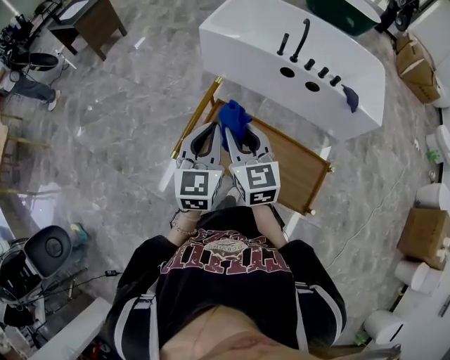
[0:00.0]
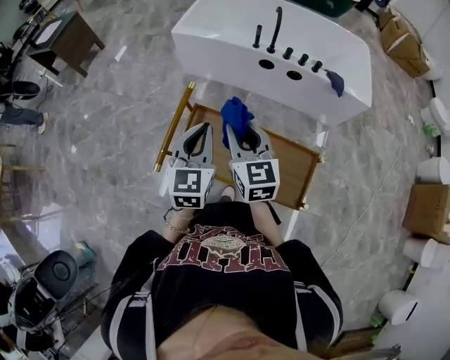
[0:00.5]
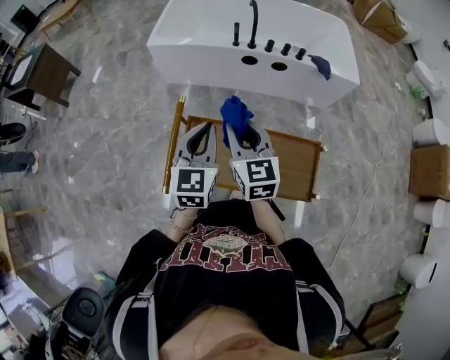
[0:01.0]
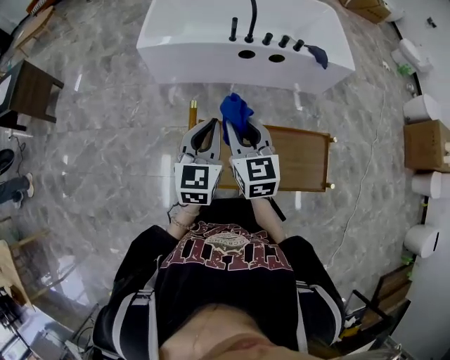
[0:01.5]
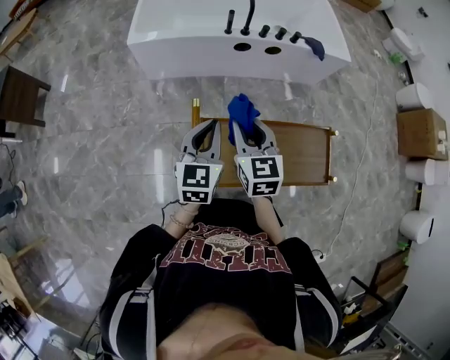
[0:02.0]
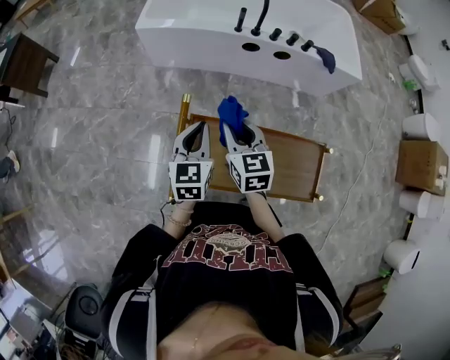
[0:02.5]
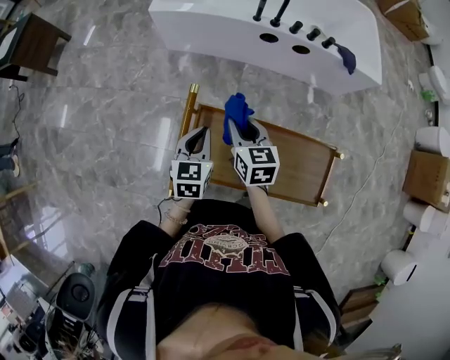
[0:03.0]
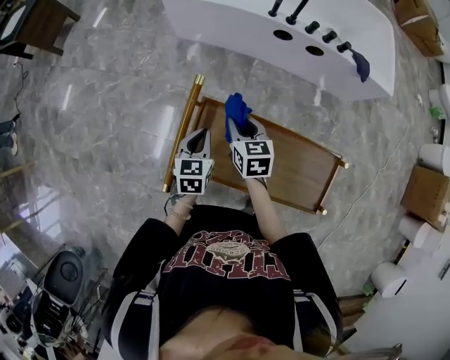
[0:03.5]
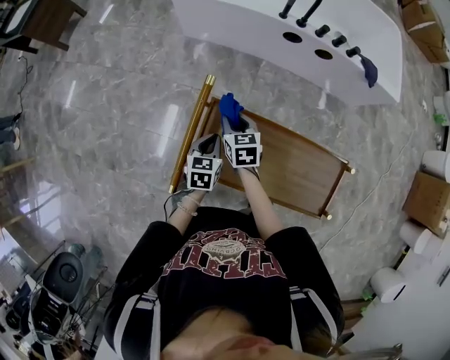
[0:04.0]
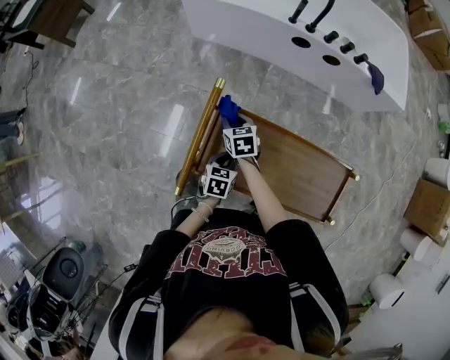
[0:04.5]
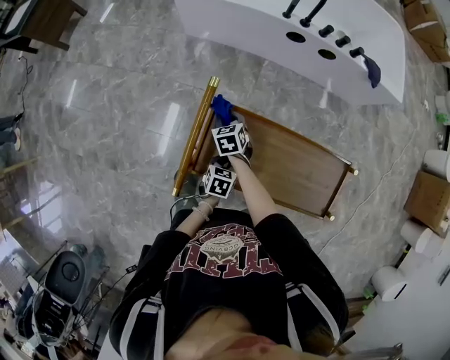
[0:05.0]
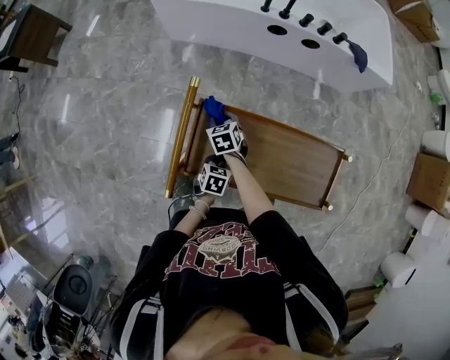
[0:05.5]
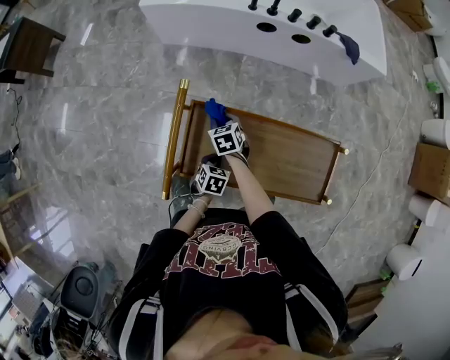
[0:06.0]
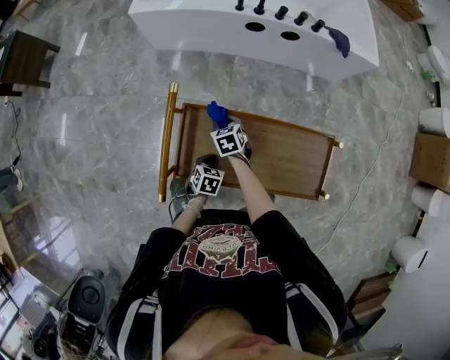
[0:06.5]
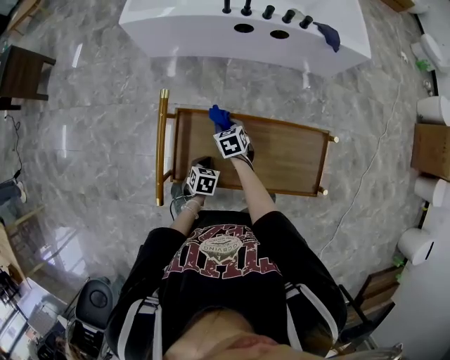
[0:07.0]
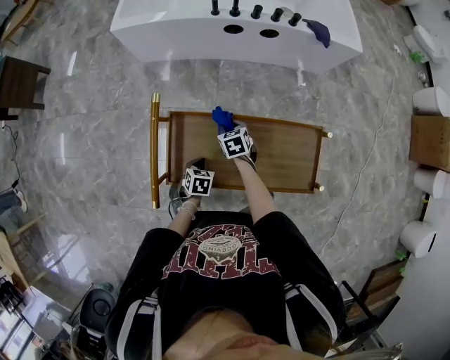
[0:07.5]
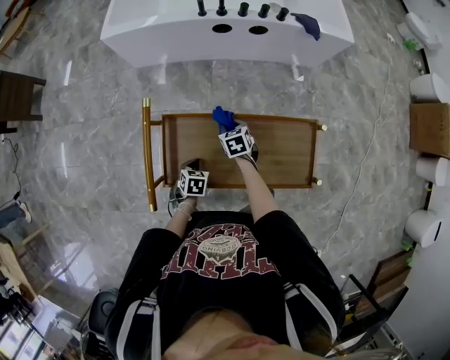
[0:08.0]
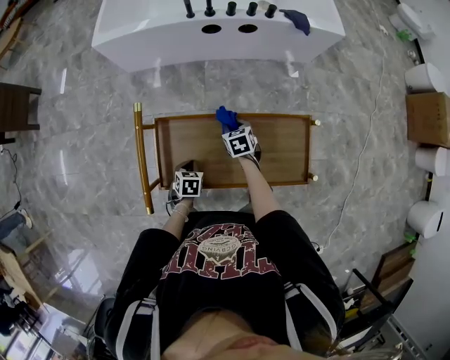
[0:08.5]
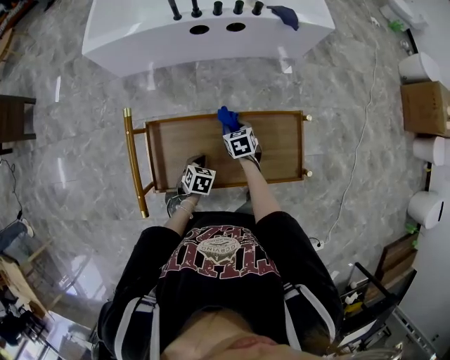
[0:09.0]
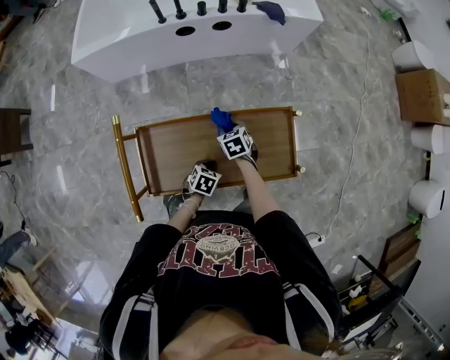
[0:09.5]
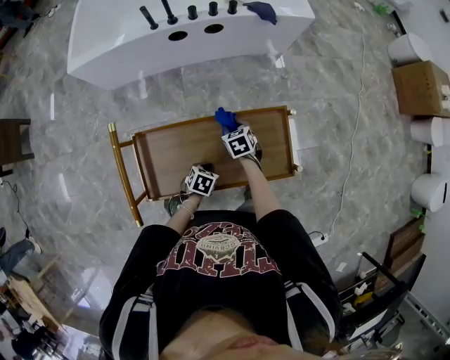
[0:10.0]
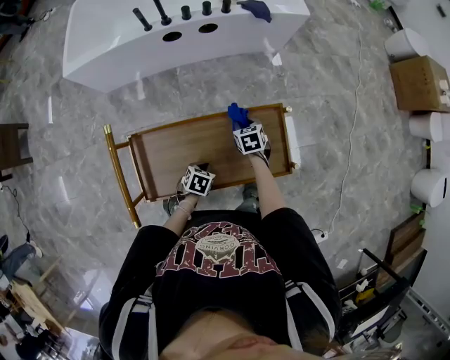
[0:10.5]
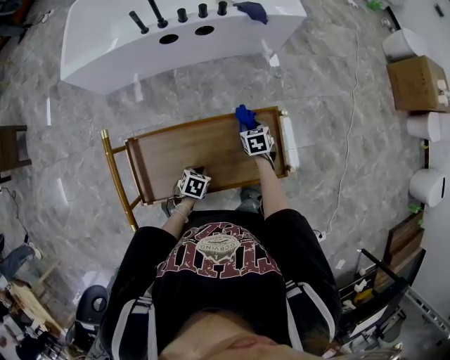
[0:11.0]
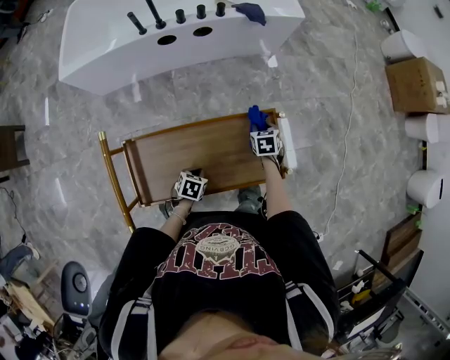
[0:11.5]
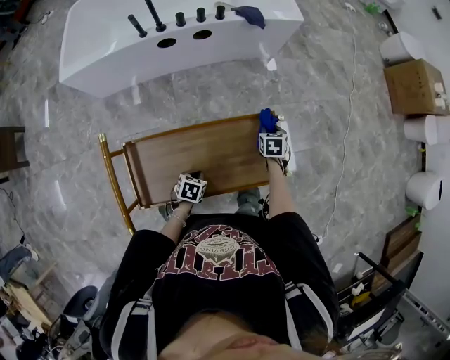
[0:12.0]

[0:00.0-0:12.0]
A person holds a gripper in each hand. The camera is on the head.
0:00.0 to 0:02.0: The right gripper changes place by about 20 cm, and swivels about 30 degrees; the left gripper shifts by roughly 20 cm, and changes its angle by approximately 30 degrees.
0:02.0 to 0:04.0: The two grippers go approximately 25 cm downward. The right gripper changes its angle by about 30 degrees; the left gripper swivels some 30 degrees.
0:04.0 to 0:06.0: The right gripper moves downward, approximately 10 cm. Meanwhile the left gripper heads downward, to the right and backward, covering roughly 15 cm, and rotates approximately 30 degrees.
0:06.0 to 0:08.0: The right gripper moves to the right, some 15 cm.
0:08.0 to 0:10.0: The right gripper changes place by approximately 15 cm; the left gripper changes place by about 15 cm, and changes its angle by some 30 degrees.
0:10.0 to 0:12.0: The right gripper is displaced to the right and forward by roughly 20 cm, and changes its angle by approximately 20 degrees.

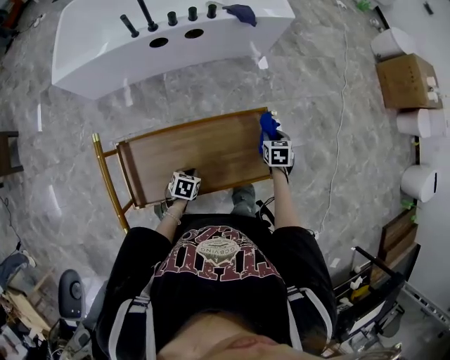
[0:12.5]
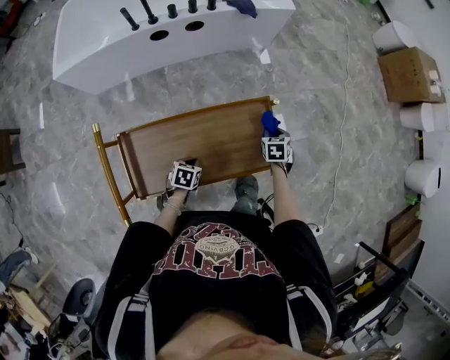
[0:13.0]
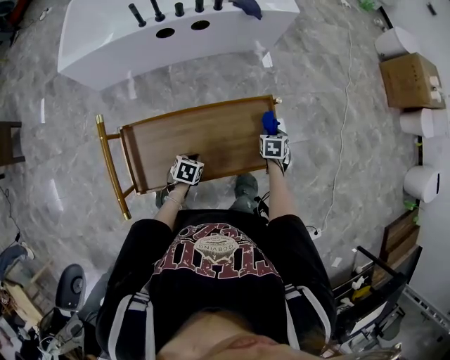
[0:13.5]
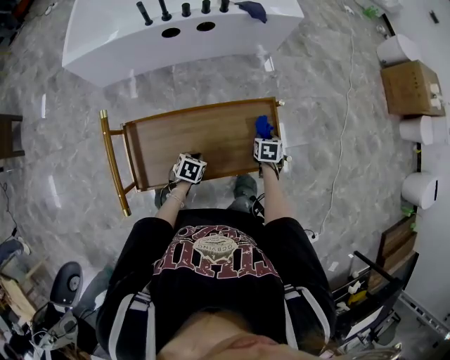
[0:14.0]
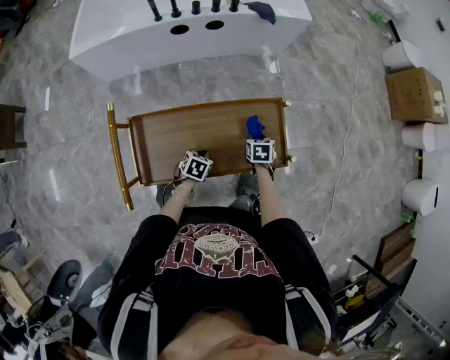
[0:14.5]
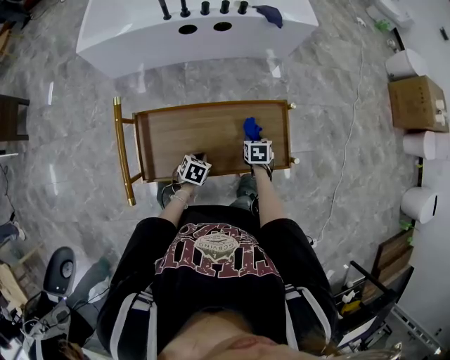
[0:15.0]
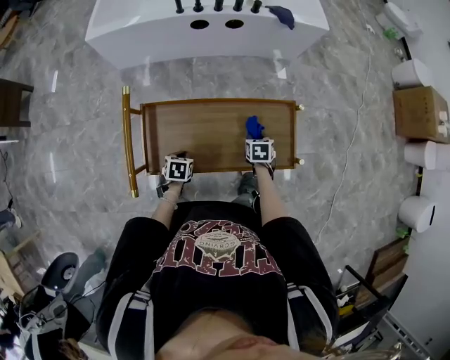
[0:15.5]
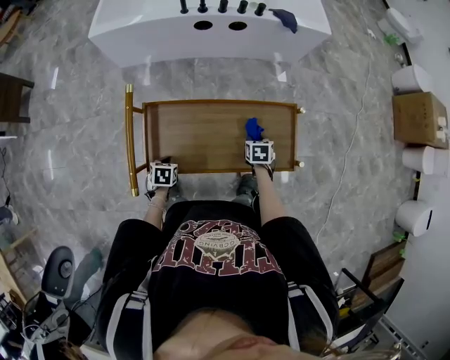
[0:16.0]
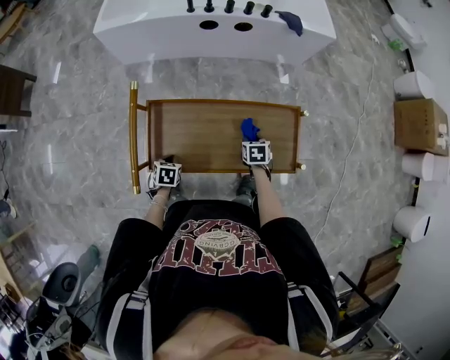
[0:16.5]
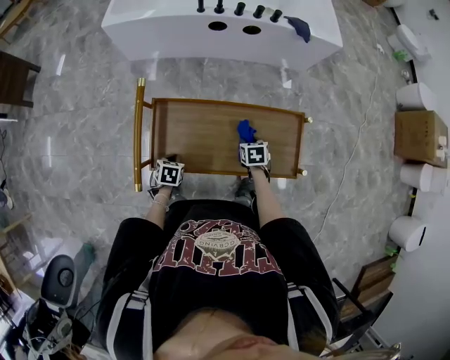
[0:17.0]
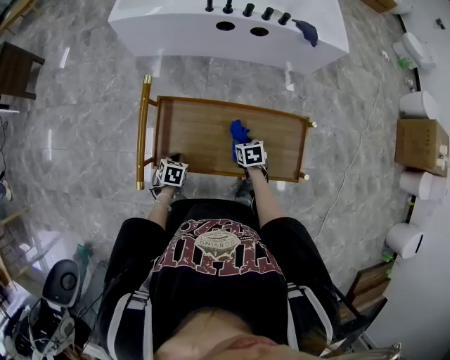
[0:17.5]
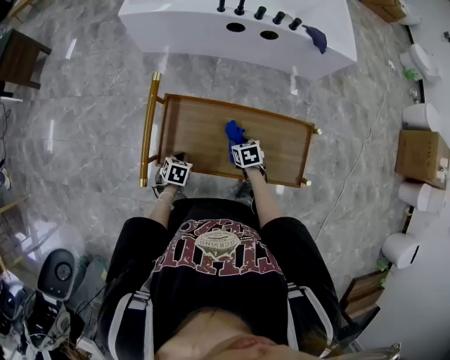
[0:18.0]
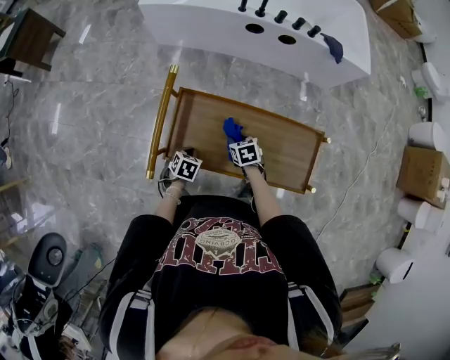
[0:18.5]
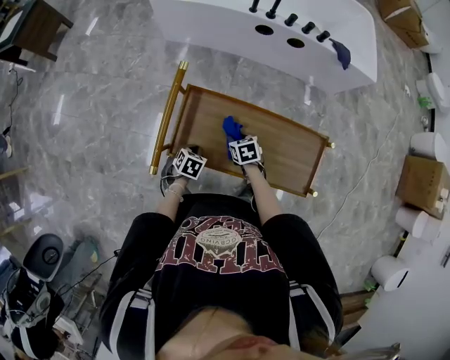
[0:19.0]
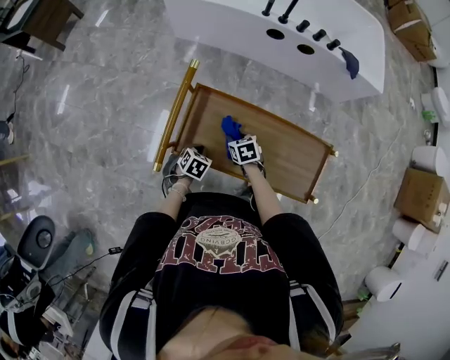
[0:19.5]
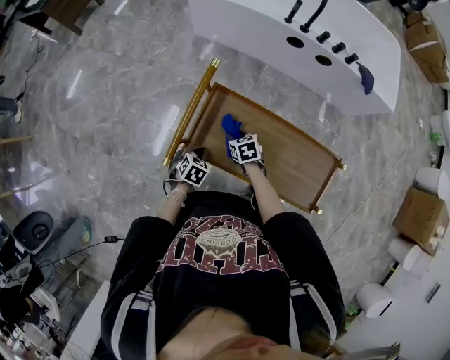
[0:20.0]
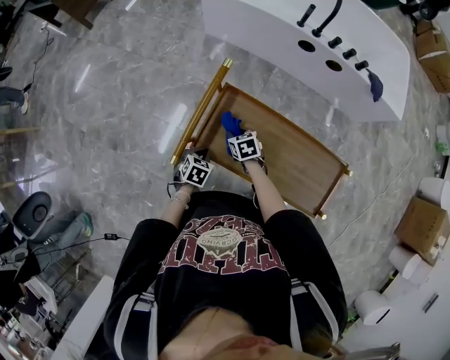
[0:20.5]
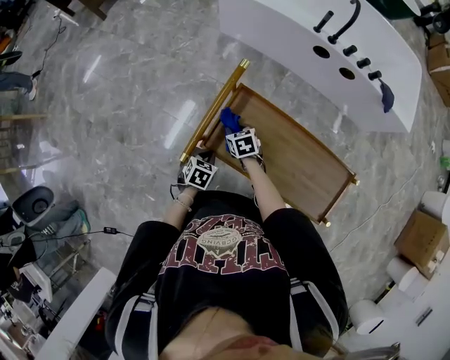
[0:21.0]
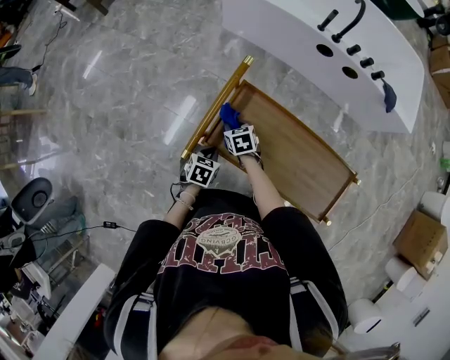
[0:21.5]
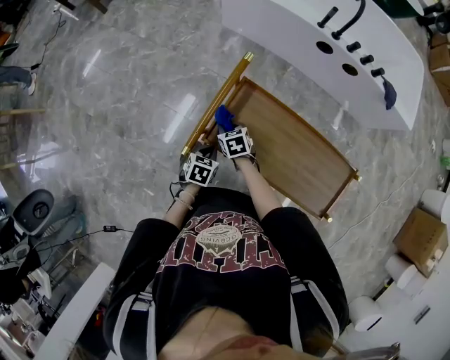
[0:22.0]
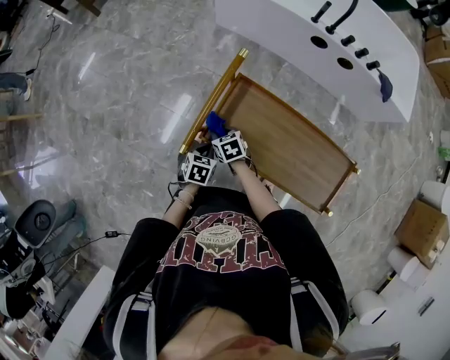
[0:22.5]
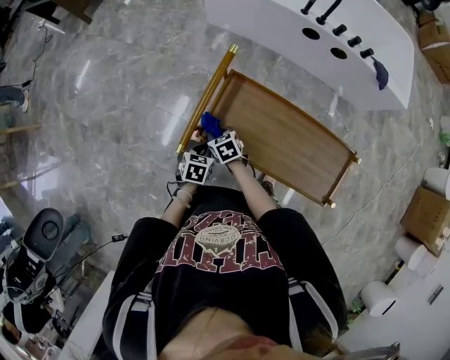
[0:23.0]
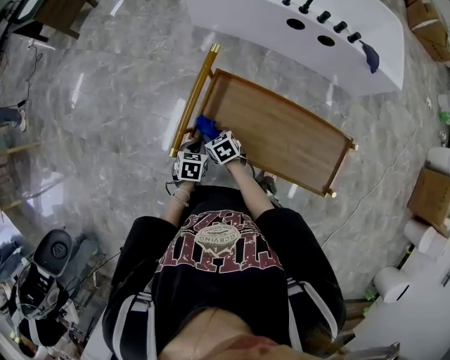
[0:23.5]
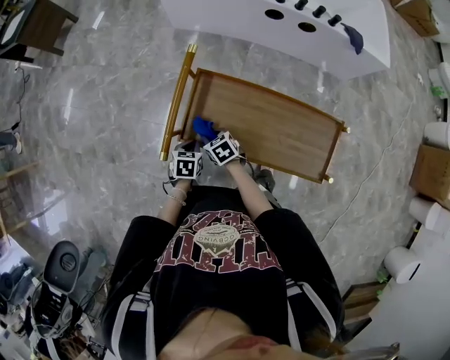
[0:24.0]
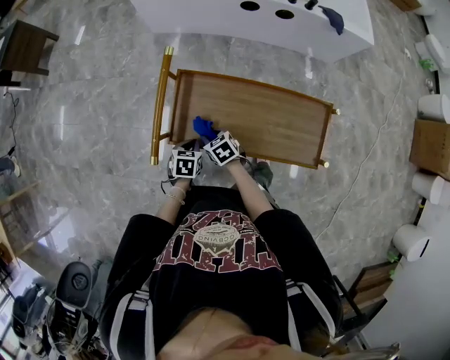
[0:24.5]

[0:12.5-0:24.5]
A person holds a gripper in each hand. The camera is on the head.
0:12.5 to 0:14.5: The right gripper shifts roughly 10 cm backward and to the left.
0:14.5 to 0:16.5: The right gripper is displaced to the left by roughly 10 cm; the left gripper moves to the left and backward, roughly 20 cm, and swivels approximately 20 degrees.
0:16.5 to 0:18.5: The right gripper is displaced to the left by roughly 15 cm, and changes its angle by approximately 30 degrees.
0:18.5 to 0:20.5: The left gripper goes some 5 cm to the left. Meanwhile the right gripper is displaced to the left by some 15 cm.
0:20.5 to 0:22.5: The right gripper travels to the left by some 10 cm.
0:22.5 to 0:24.5: The left gripper is displaced to the right by about 5 cm. Meanwhile the right gripper travels to the right and backward by some 10 cm.

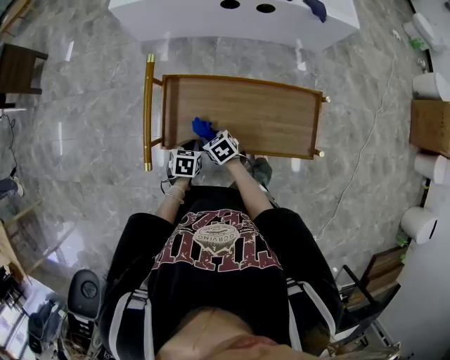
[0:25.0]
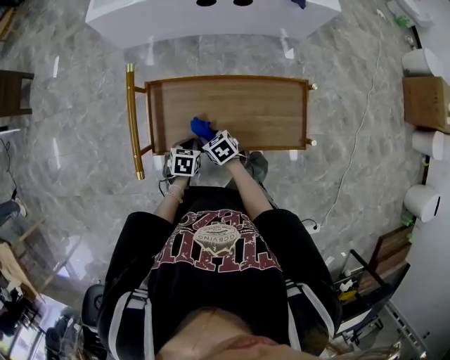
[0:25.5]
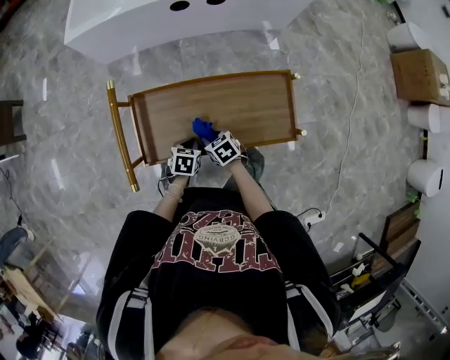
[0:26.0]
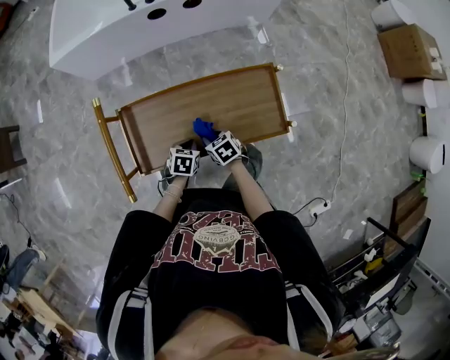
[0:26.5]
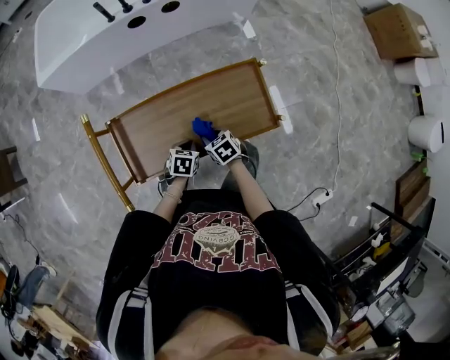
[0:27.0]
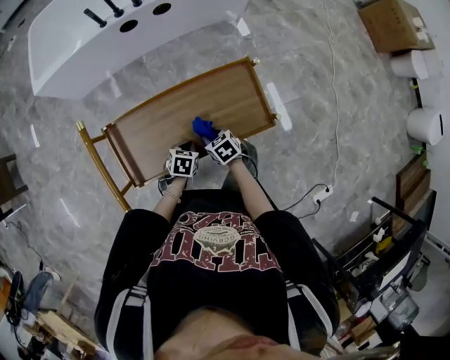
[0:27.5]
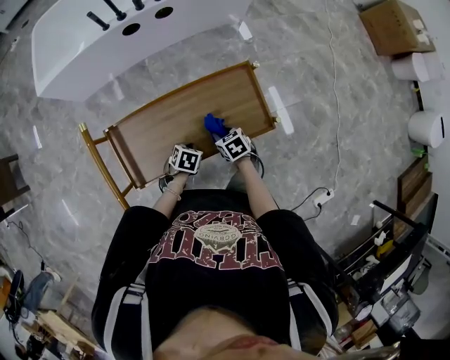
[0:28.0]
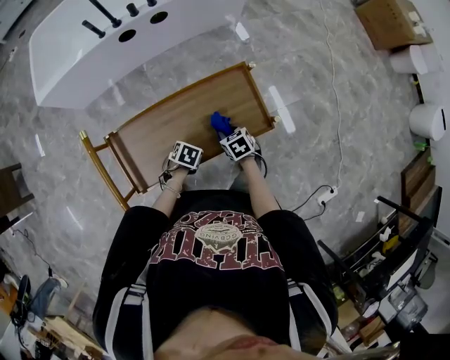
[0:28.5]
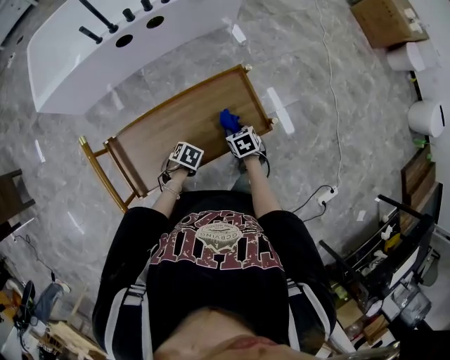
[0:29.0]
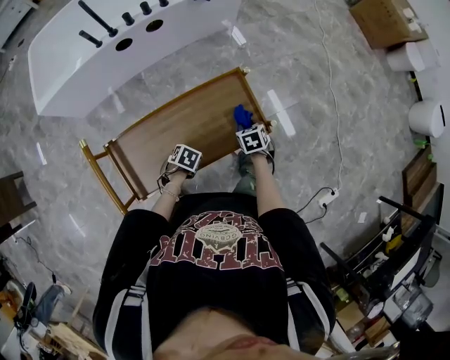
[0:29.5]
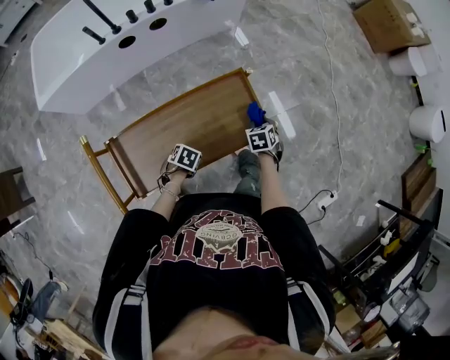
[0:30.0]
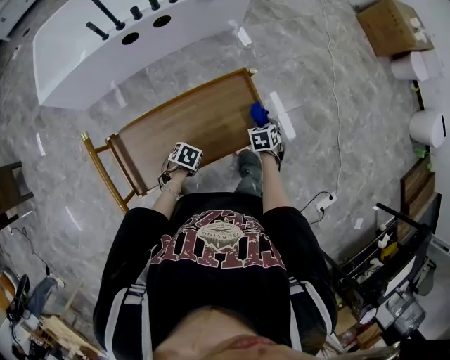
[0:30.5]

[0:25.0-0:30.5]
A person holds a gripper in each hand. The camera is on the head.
0:25.0 to 0:27.0: The left gripper moves roughly 15 cm, and rotates about 30 degrees; the right gripper shifts by about 20 cm, and rotates some 20 degrees.
0:27.0 to 0:28.5: The left gripper turns by some 20 degrees; the right gripper shifts by about 10 cm.
0:28.5 to 0:30.5: The right gripper changes place by some 15 cm, and rotates roughly 30 degrees.
